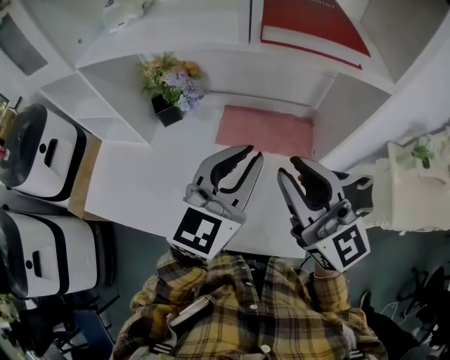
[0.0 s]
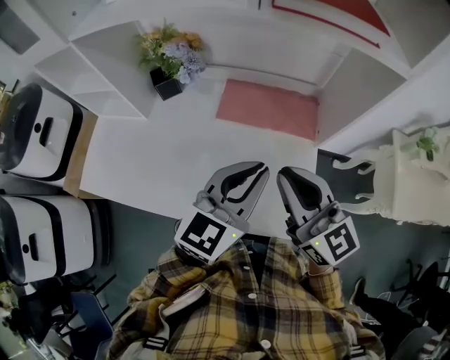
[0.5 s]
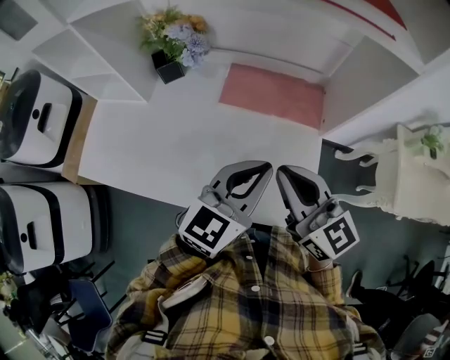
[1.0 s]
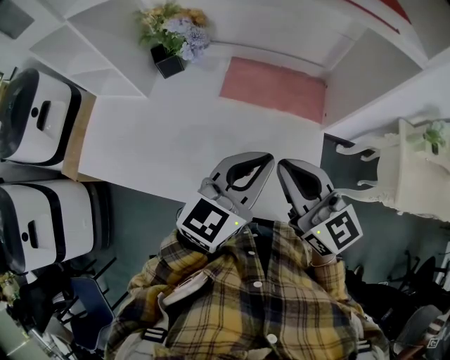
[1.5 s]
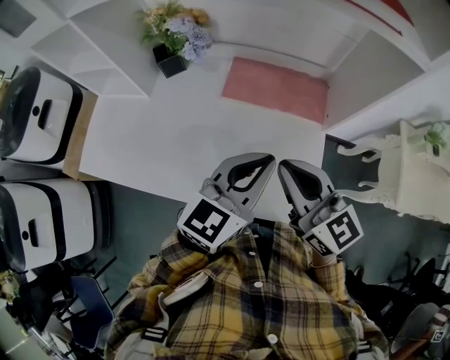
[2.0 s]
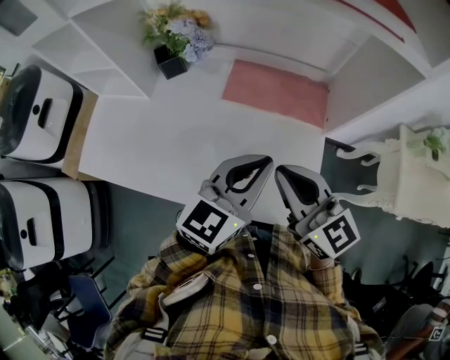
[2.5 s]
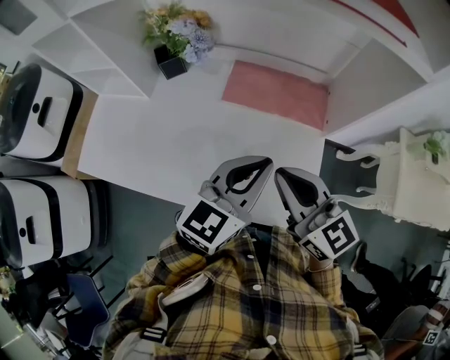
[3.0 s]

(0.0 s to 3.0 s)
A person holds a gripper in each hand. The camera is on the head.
0.0 s - 1.5 s: The left gripper is displaced downward and backward by approximately 10 cm. The right gripper is displaced downward by about 10 cm.
1.5 s - 3.0 s: Neither gripper changes place.

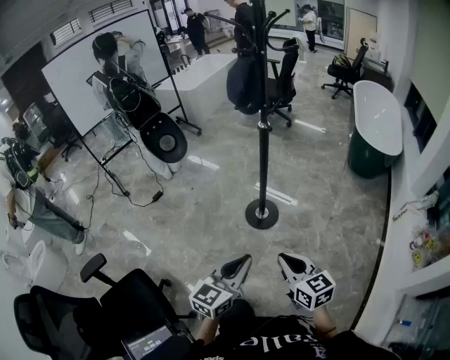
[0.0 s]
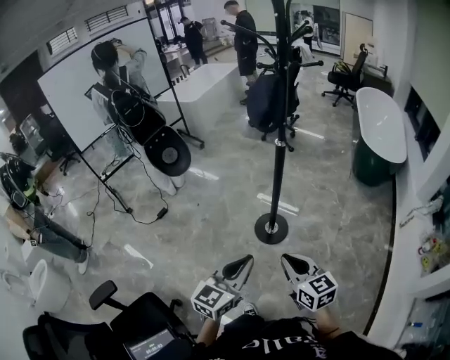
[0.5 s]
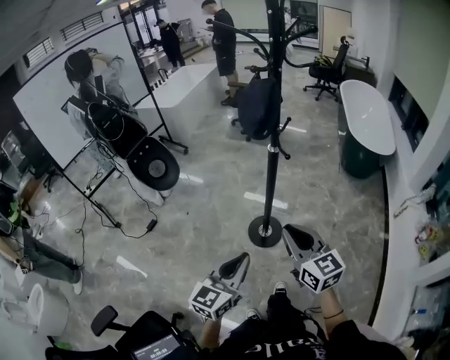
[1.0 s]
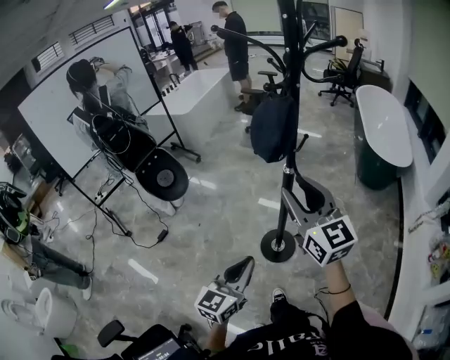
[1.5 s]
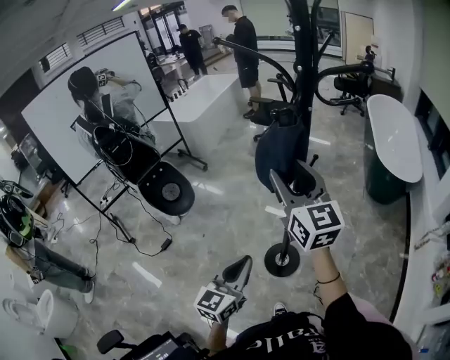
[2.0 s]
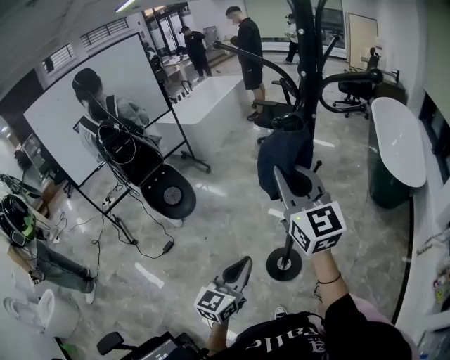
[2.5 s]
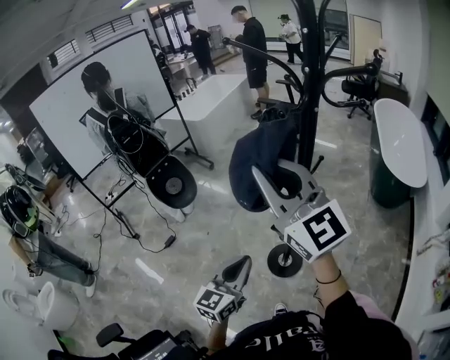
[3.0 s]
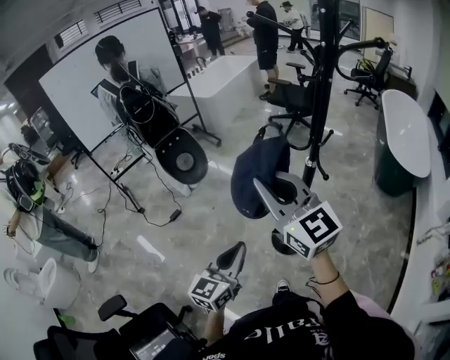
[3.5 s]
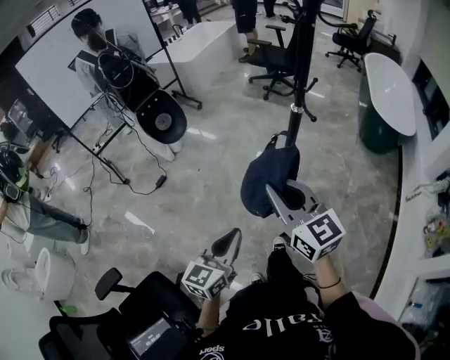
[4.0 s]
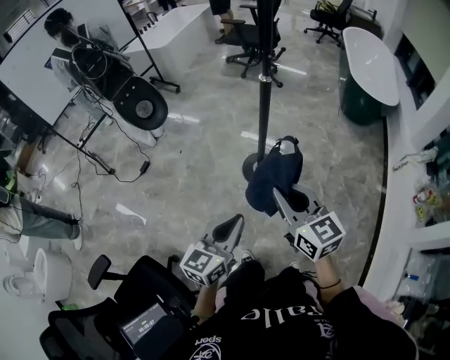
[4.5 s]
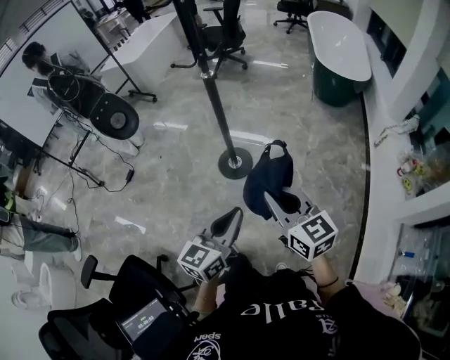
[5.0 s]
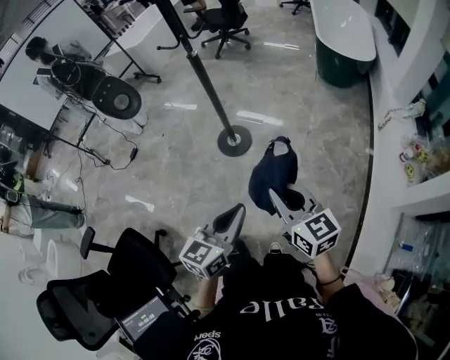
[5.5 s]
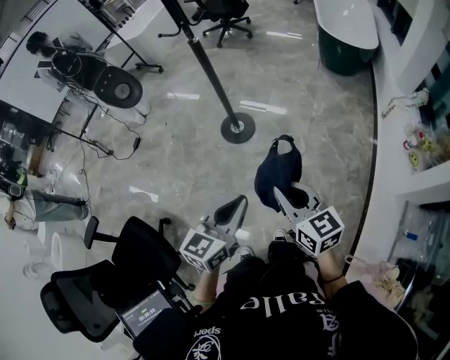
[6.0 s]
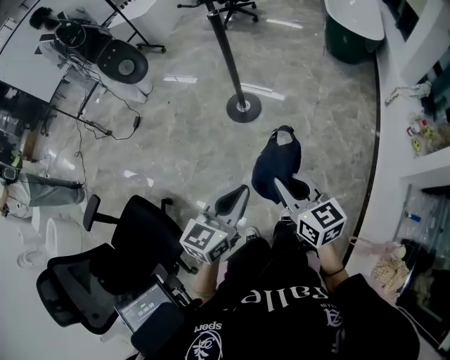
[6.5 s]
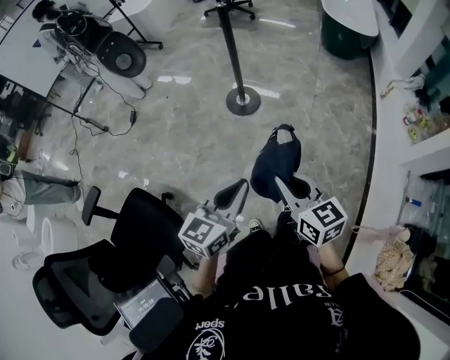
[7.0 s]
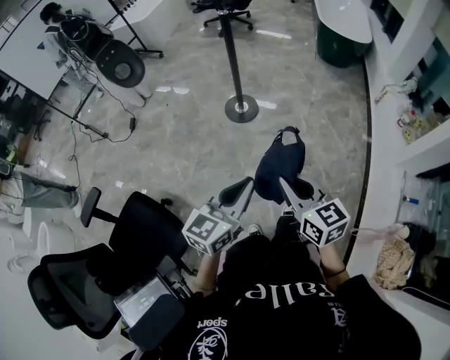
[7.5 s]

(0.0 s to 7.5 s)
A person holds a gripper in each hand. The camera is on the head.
0.0 s - 2.0 s: The pair of grippers is taken forward, roughly 50 cm. The right gripper moves upward, approximately 25 cm, swivels some 40 degrees, and opens.
2.0 s - 4.0 s: The left gripper travels backward by approximately 20 cm, while the right gripper goes about 30 cm backward and downward, changes its angle by roughly 20 degrees, and closes up.
4.0 s - 5.5 s: The two grippers travel together, to the right and backward, approximately 50 cm.
5.5 s - 7.5 s: Both grippers move backward and to the left, about 25 cm.

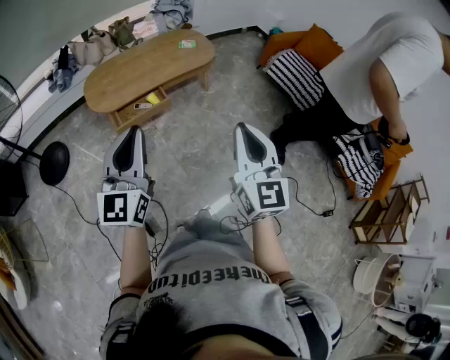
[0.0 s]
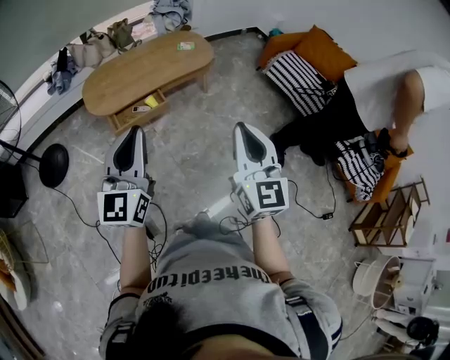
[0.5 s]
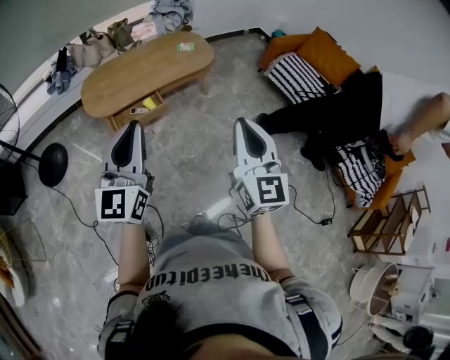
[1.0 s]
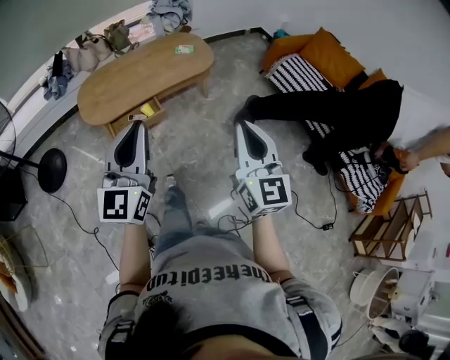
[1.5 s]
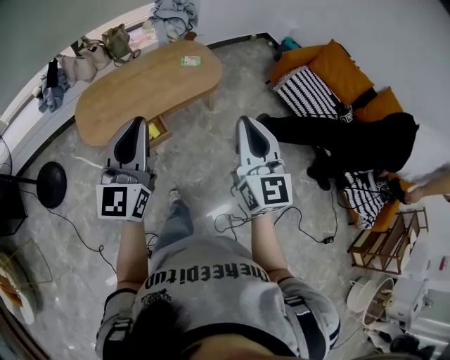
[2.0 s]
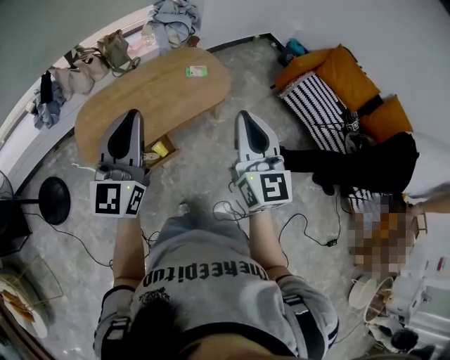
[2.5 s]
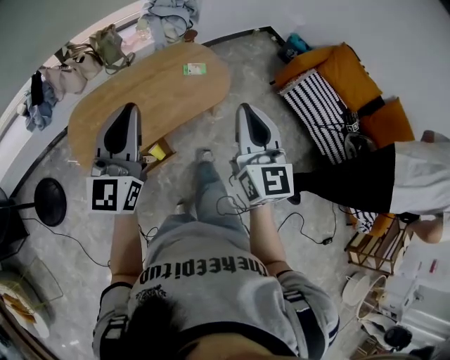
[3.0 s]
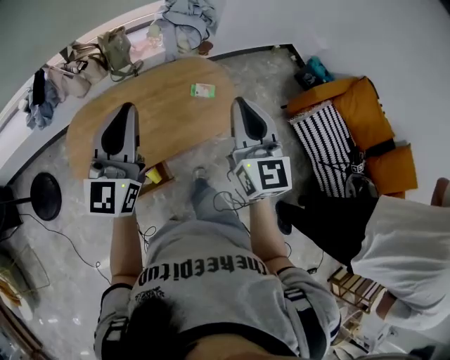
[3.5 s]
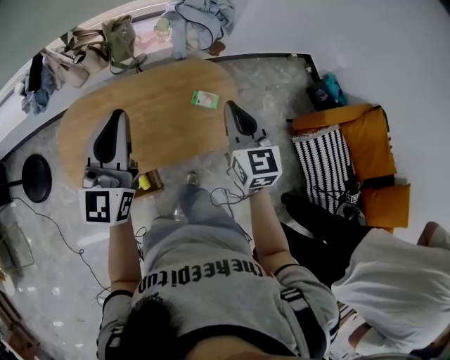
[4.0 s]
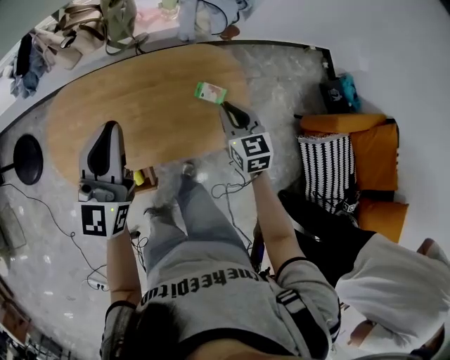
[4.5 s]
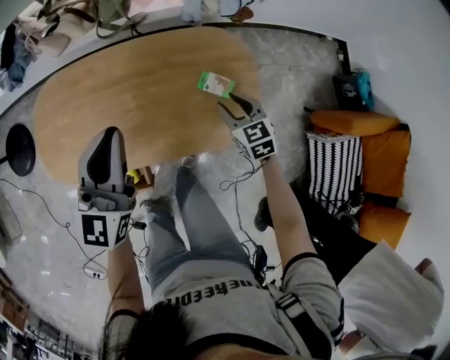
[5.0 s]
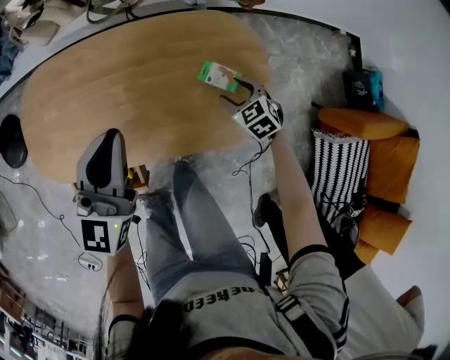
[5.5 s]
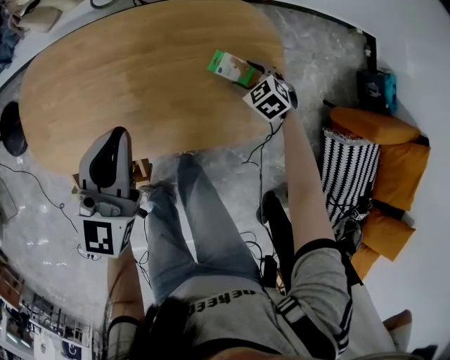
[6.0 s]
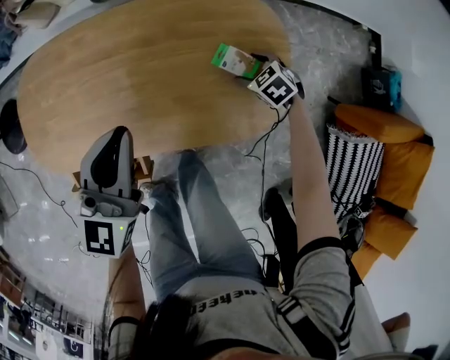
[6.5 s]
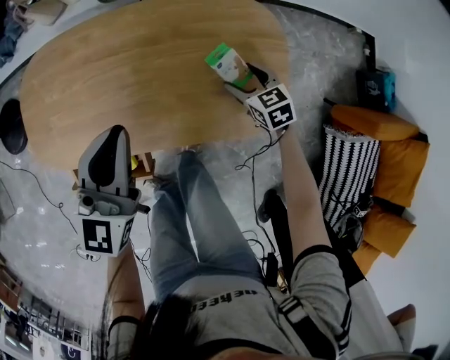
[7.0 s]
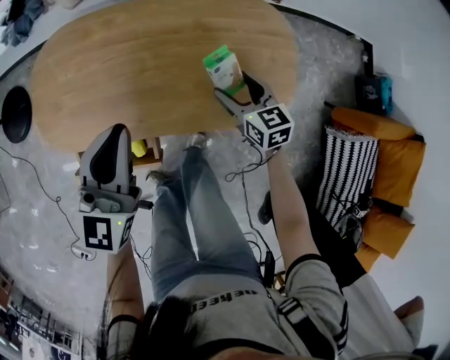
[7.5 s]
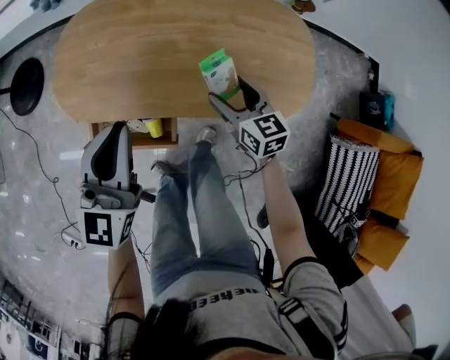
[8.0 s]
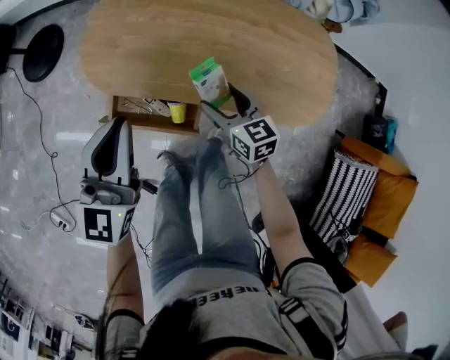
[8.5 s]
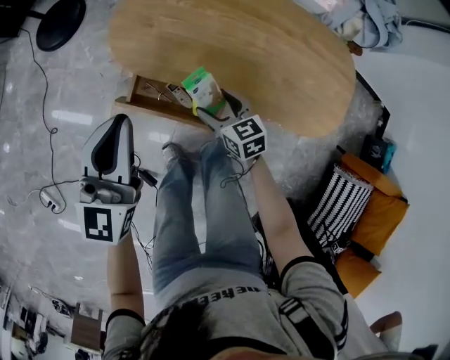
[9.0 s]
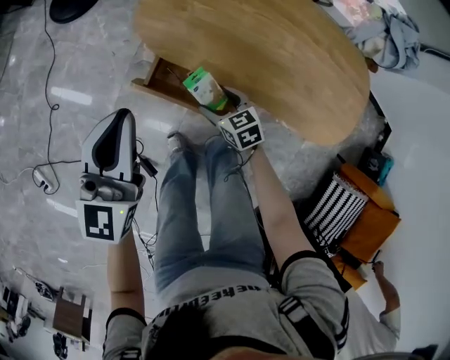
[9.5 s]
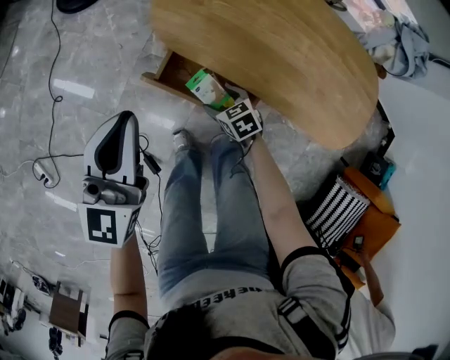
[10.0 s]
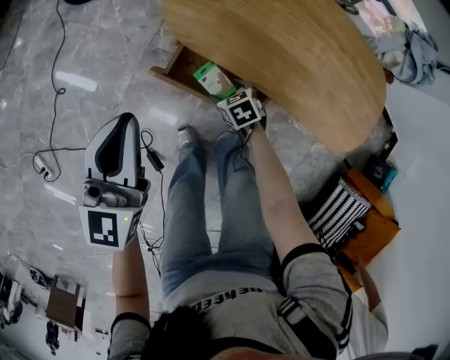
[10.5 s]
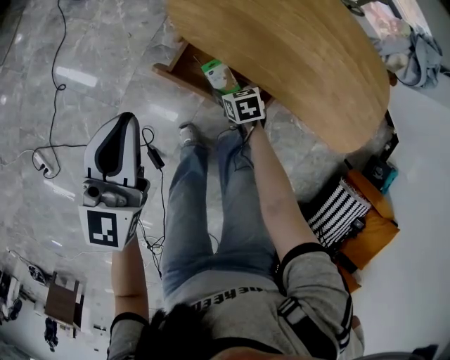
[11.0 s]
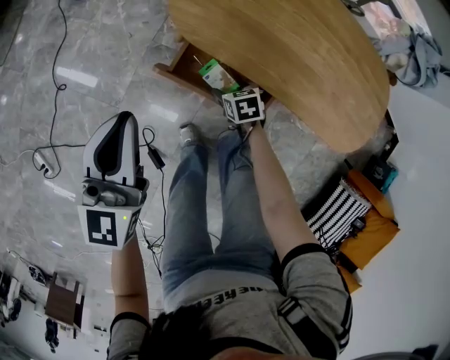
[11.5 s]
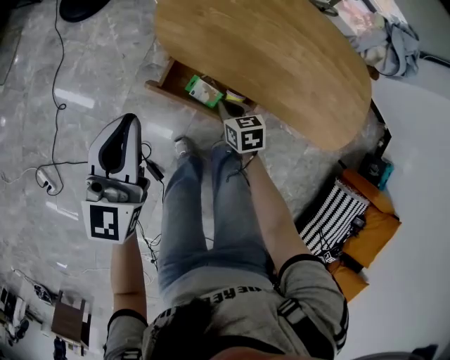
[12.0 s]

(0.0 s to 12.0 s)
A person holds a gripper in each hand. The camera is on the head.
0.0 s - 2.0 s: Both grippers move forward, roughly 30 cm.
2.0 s - 4.0 s: The two grippers travel together, forward, approximately 50 cm. The right gripper turns by some 30 degrees.
4.0 s - 6.0 s: The left gripper goes approximately 30 cm downward, and rotates approximately 20 degrees; the right gripper heads downward, covering some 50 cm, points its fingers about 50 degrees further downward, and opens up.
6.0 s - 8.0 s: The left gripper shifts approximately 20 cm to the left and backward. The right gripper is displaced to the left and upward by about 30 cm, and tips its fingers upward by roughly 40 degrees.
8.0 s - 10.0 s: The left gripper shifts by roughly 35 cm, and turns by some 20 degrees; the right gripper shifts by some 40 cm, and swivels about 50 degrees.
10.0 s - 12.0 s: The right gripper goes some 5 cm upward, swivels approximately 20 degrees, and closes.

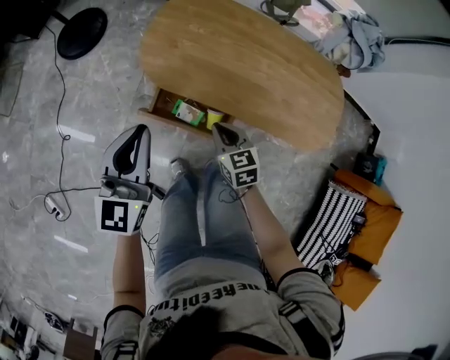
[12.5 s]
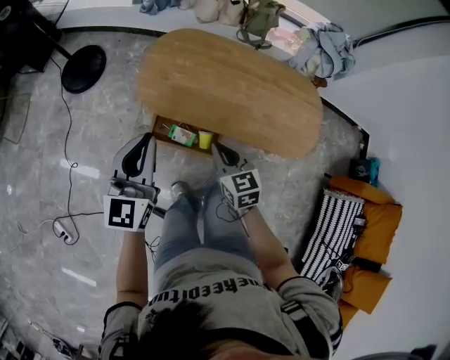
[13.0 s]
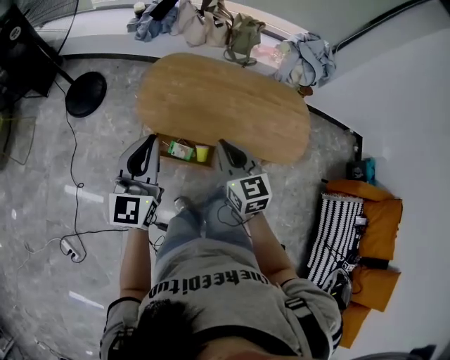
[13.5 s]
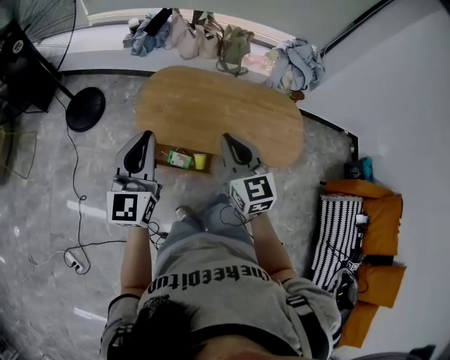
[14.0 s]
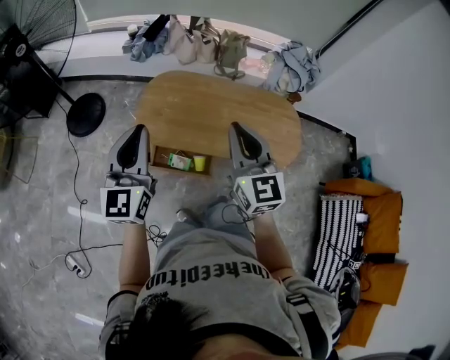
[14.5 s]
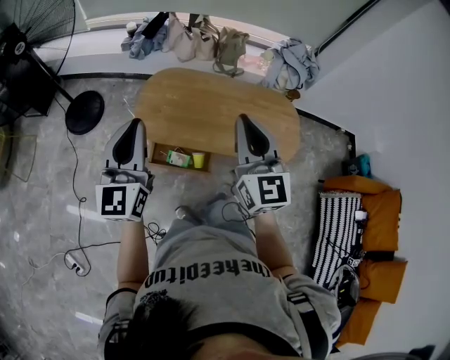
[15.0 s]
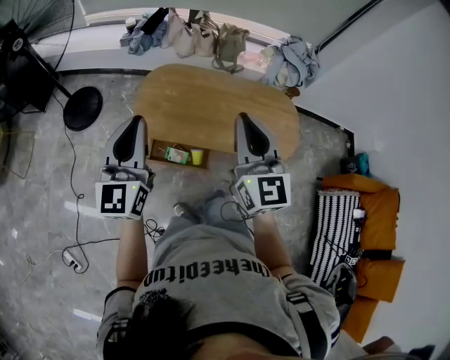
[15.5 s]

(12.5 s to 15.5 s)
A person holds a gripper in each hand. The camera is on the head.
12.5 s - 14.0 s: The left gripper travels upward by roughly 20 cm, while the right gripper moves upward, roughly 35 cm, and tilts its fingers approximately 30 degrees upward.
14.0 s - 15.5 s: The right gripper heads upward, covering about 10 cm.
